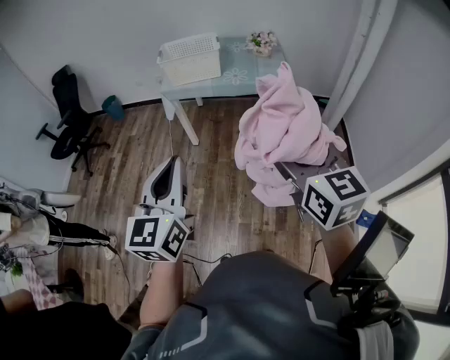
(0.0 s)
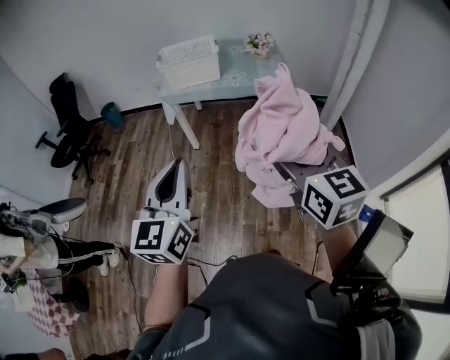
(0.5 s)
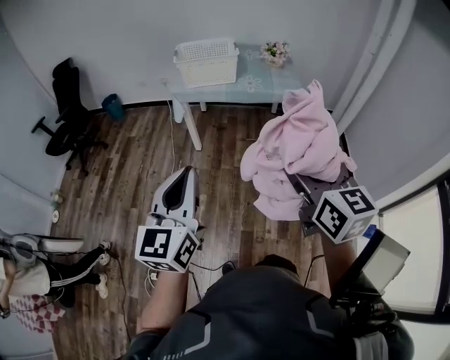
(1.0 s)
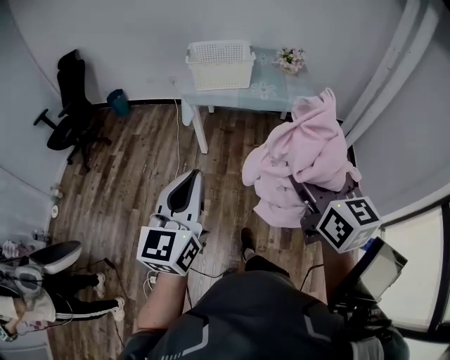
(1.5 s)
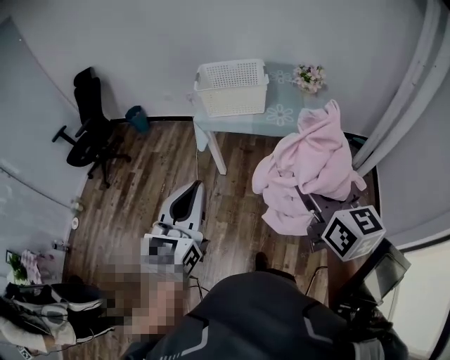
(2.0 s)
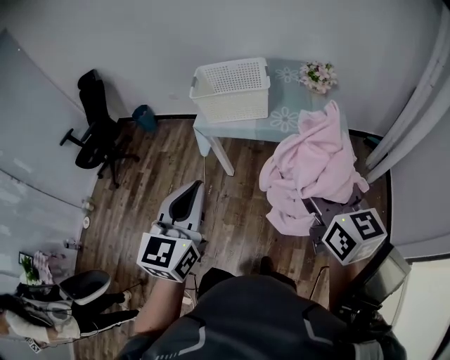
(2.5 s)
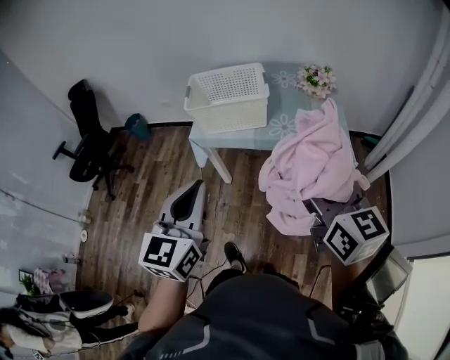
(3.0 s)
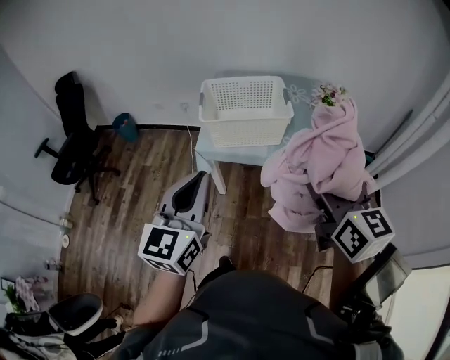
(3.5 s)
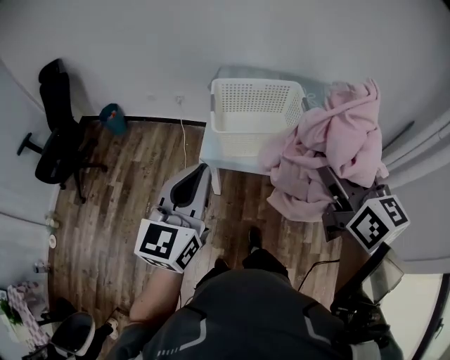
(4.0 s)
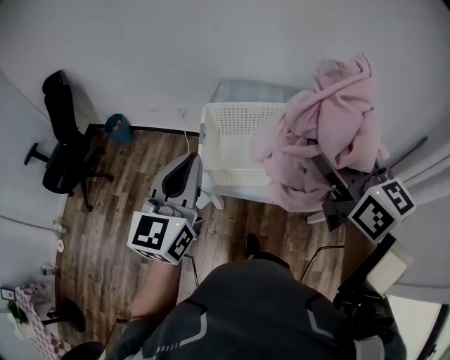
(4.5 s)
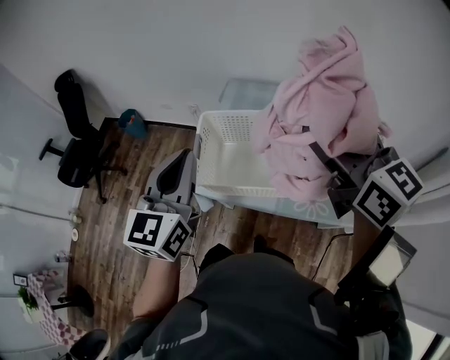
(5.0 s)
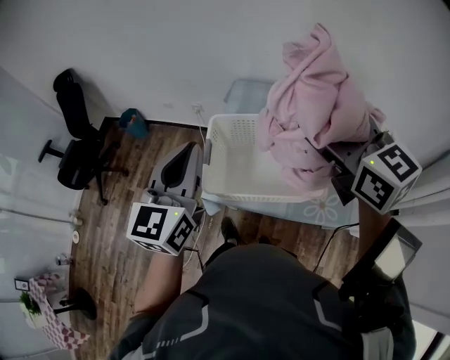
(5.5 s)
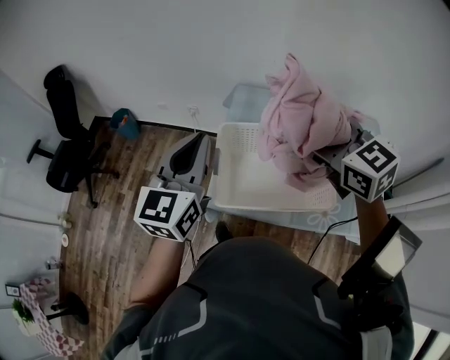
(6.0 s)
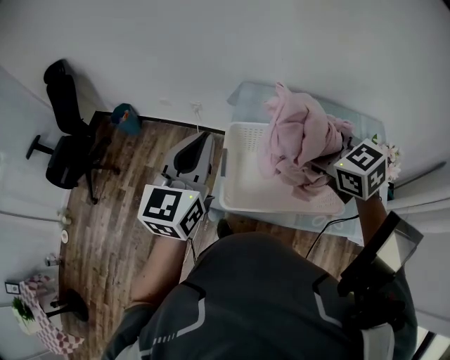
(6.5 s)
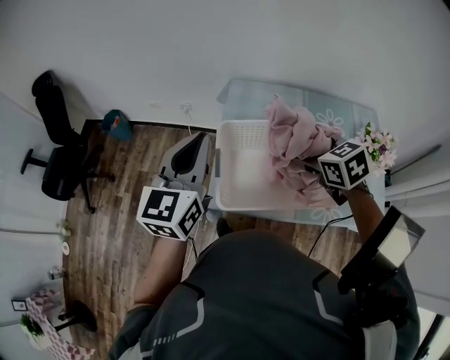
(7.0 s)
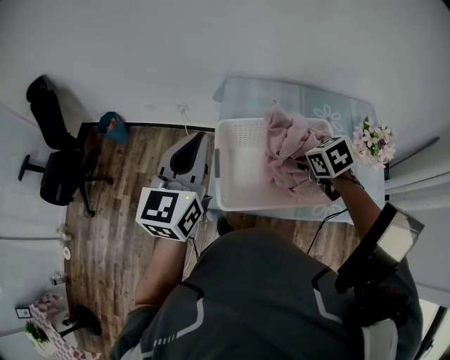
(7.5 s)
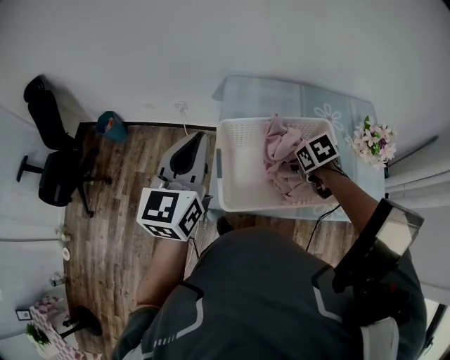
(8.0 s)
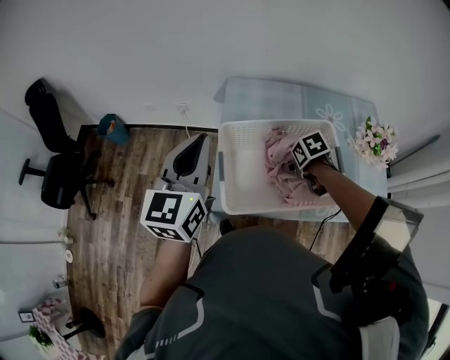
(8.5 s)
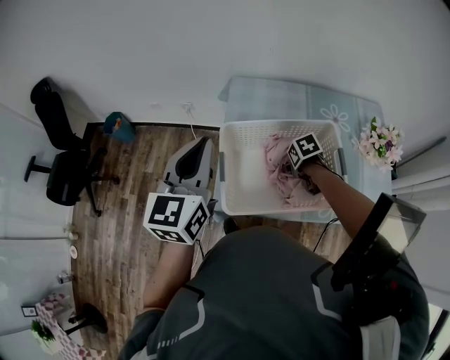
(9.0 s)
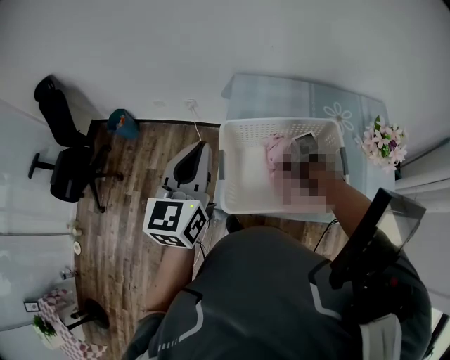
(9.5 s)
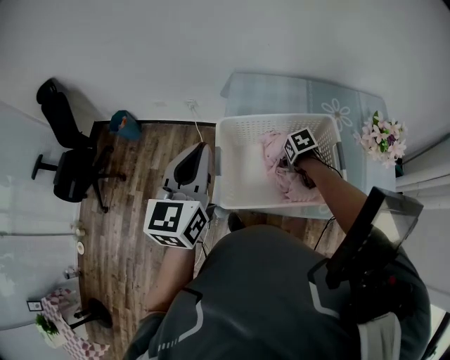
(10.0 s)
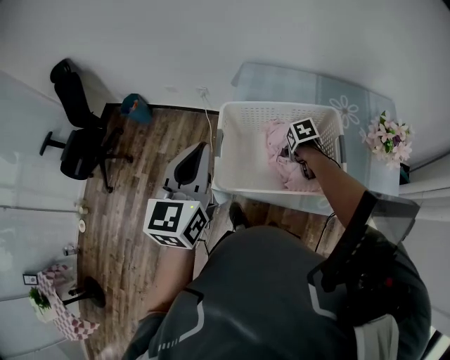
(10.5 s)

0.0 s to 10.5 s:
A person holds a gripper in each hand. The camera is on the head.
0.0 to 2.0 s: The right gripper is displaced forward by roughly 20 cm; the left gripper goes approximately 20 cm forward and to the left.
2.0 to 4.0 s: Both grippers move forward, approximately 40 cm.
4.0 to 6.5 s: Both grippers travel together forward, some 30 cm. The right gripper turns by roughly 40 degrees.
6.5 to 8.5 s: The right gripper is displaced downward by some 25 cm, and points its fingers roughly 40 degrees further downward.
8.5 to 10.5 s: The left gripper ends up some 10 cm from where it was. The right gripper goes roughly 5 cm downward.

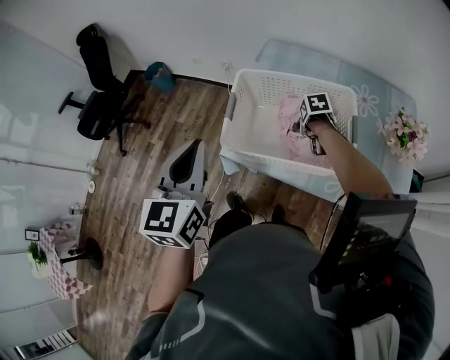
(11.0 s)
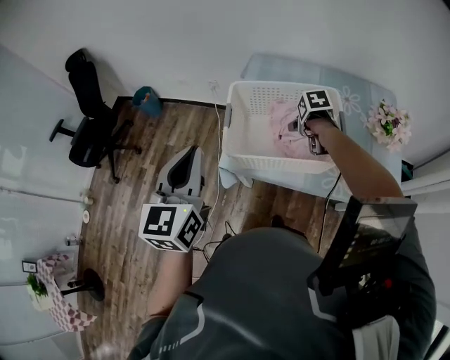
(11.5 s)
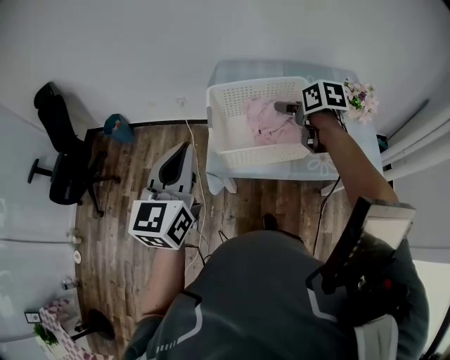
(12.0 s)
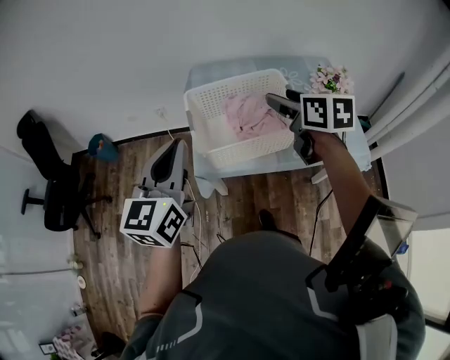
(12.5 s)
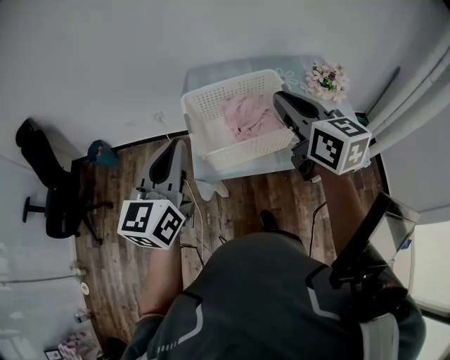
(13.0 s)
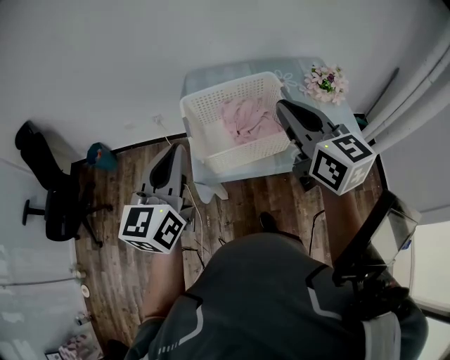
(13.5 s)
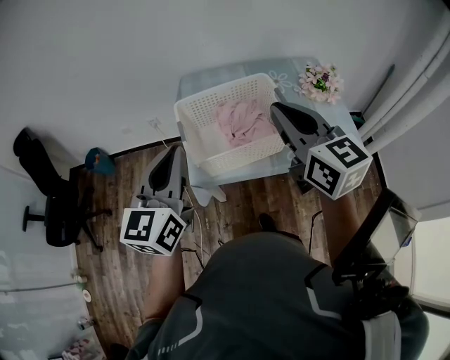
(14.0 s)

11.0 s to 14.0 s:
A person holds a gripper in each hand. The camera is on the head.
11.0 to 12.5 s: The right gripper shifts some 30 cm upward, and tips its fingers upward by roughly 50 degrees, while the left gripper turns by some 30 degrees.
12.5 to 14.0 s: The right gripper heads backward and upward, covering roughly 10 cm, changes its angle by about 30 degrees, and closes.

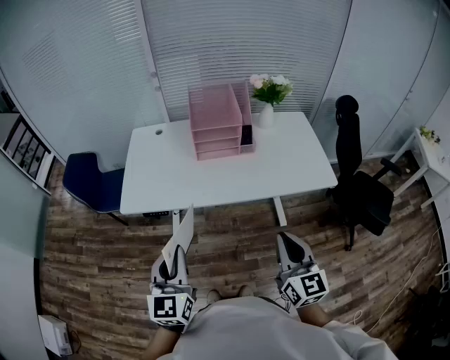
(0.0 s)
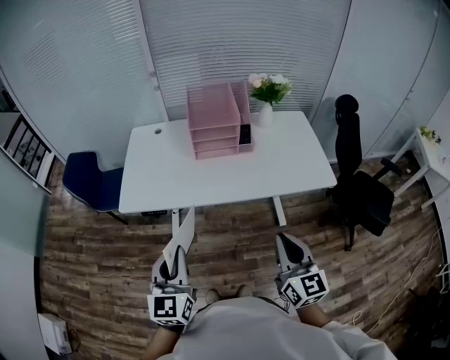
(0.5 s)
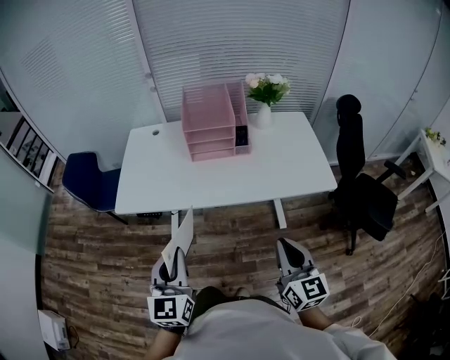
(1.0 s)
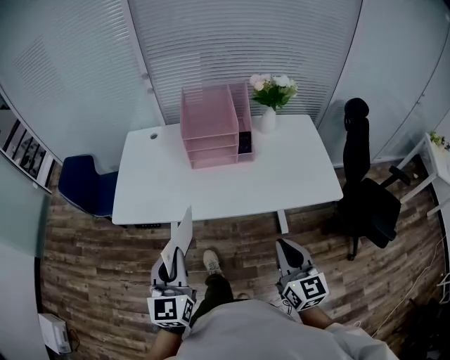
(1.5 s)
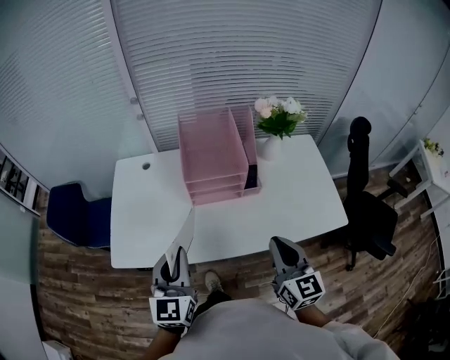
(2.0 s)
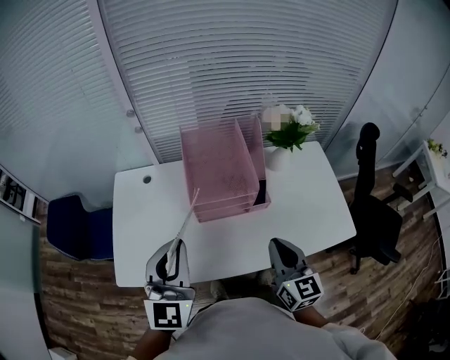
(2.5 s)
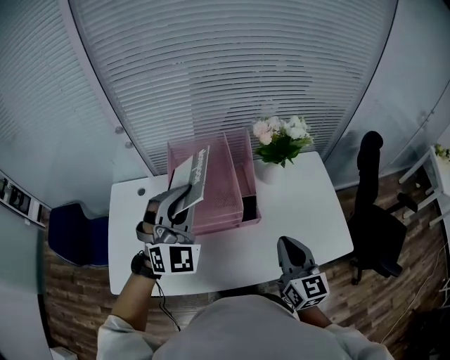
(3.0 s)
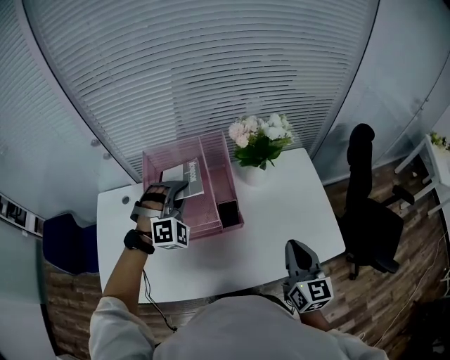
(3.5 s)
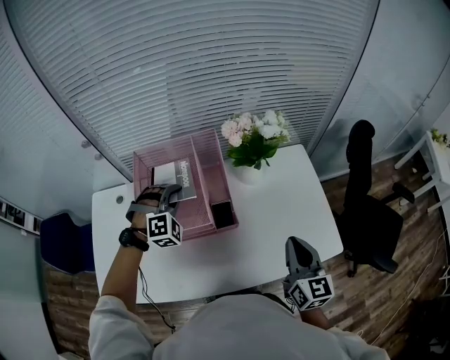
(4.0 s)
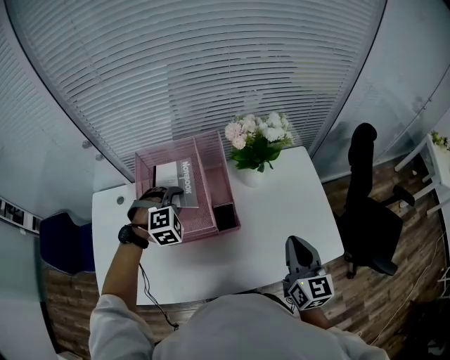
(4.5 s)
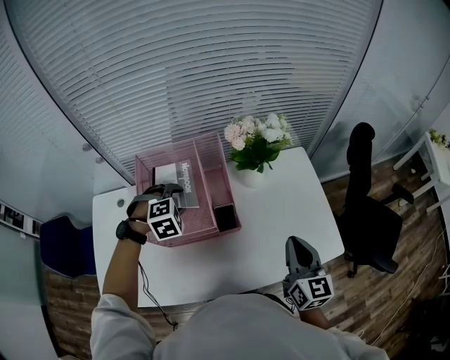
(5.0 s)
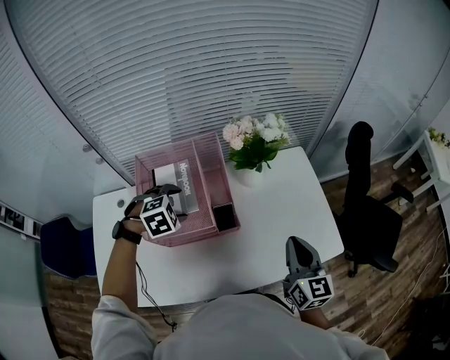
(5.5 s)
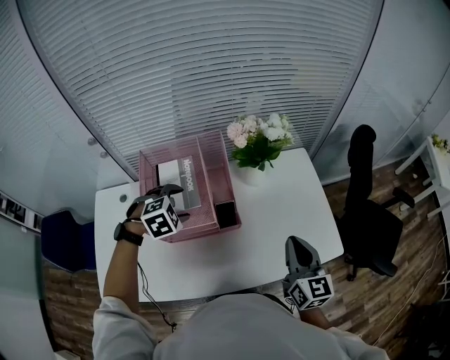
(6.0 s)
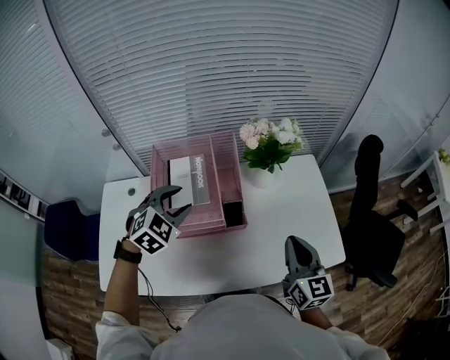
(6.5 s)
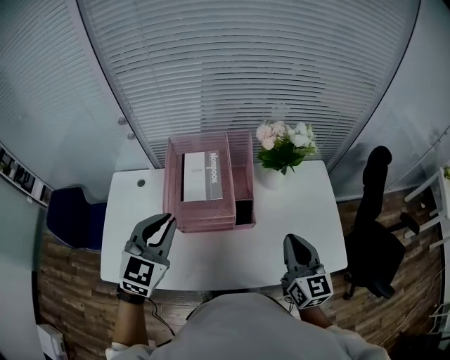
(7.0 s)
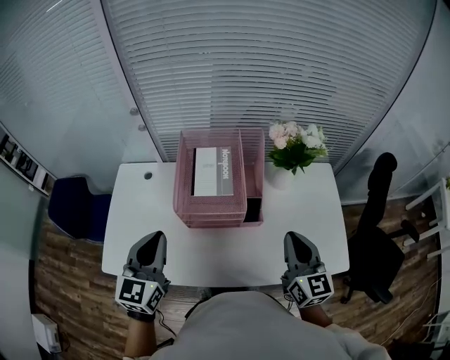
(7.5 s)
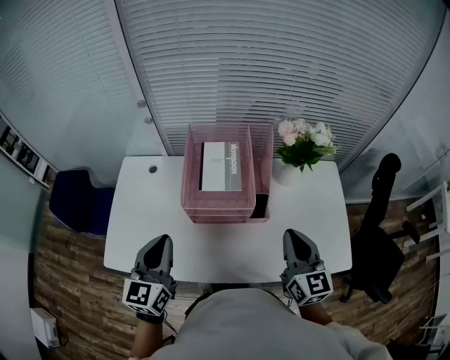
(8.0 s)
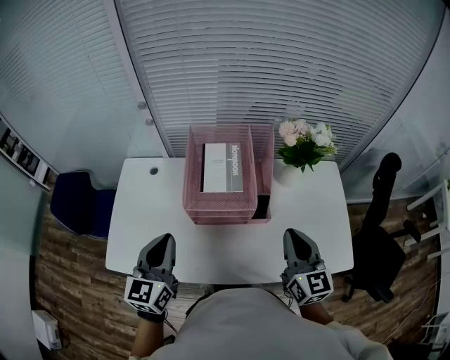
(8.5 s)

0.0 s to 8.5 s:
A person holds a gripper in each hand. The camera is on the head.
0.0 to 2.0 s: The two grippers go about 25 cm forward.
2.0 to 4.0 s: The left gripper goes roughly 40 cm forward, and rolls clockwise, seen from behind, by roughly 80 degrees, while the right gripper is displaced to the right and forward by roughly 25 cm.
4.0 to 6.5 s: The left gripper heads backward and upward, covering some 10 cm, swivels some 30 degrees, and opens its fingers.
6.5 to 8.5 s: The right gripper travels to the left by about 10 cm; the left gripper moves backward and to the left, some 20 cm, angles its fingers upward, by about 30 degrees, and closes up.

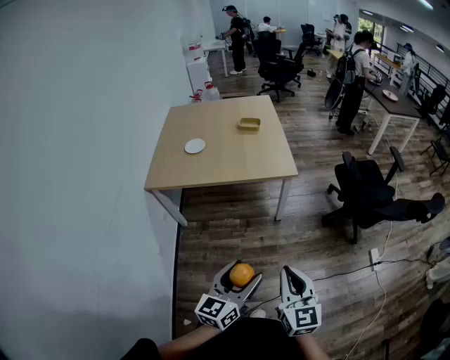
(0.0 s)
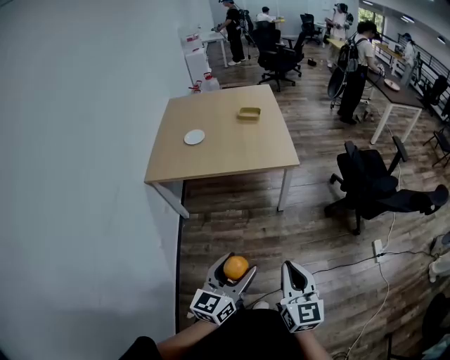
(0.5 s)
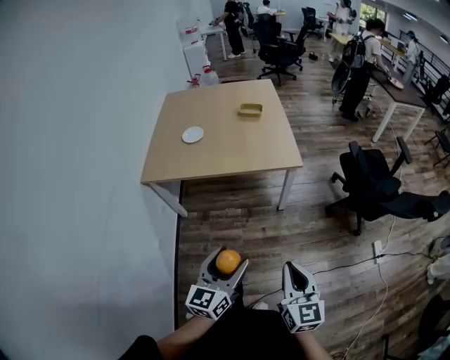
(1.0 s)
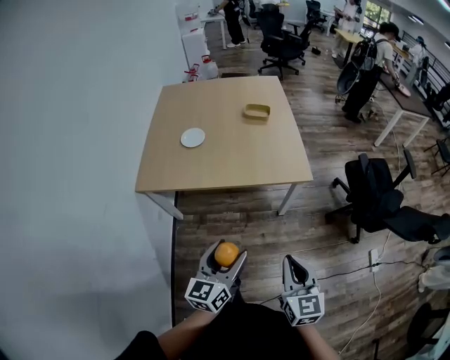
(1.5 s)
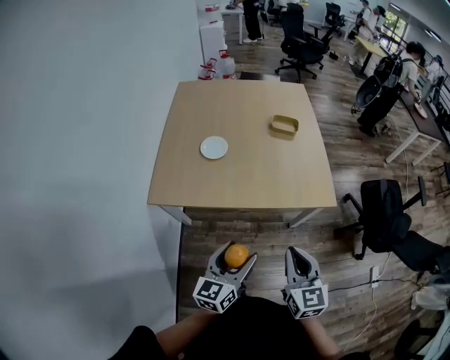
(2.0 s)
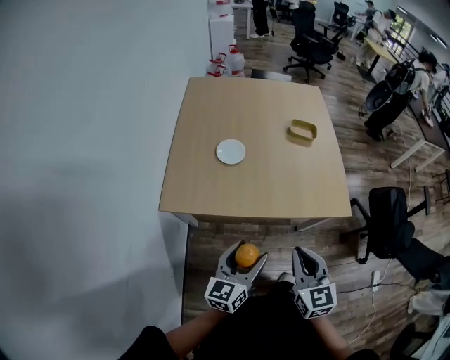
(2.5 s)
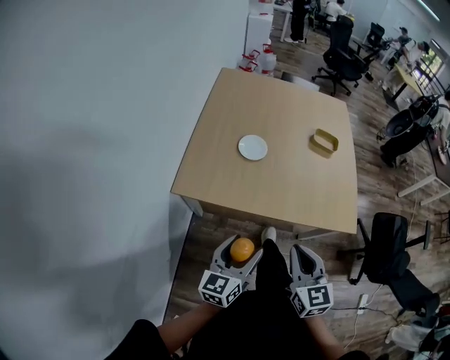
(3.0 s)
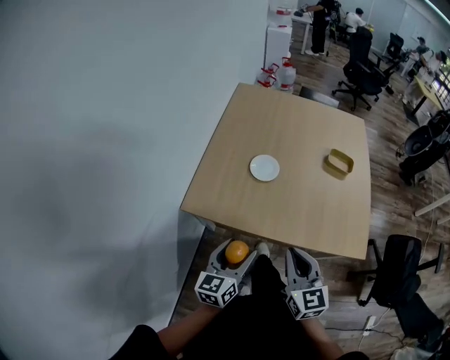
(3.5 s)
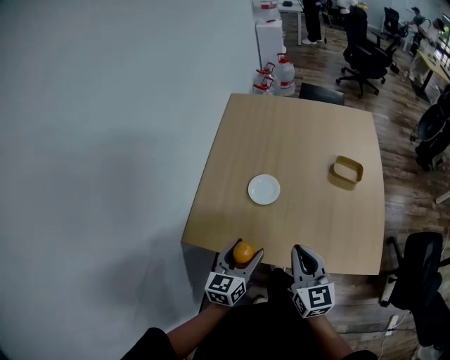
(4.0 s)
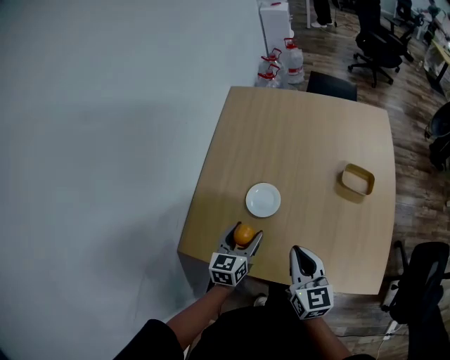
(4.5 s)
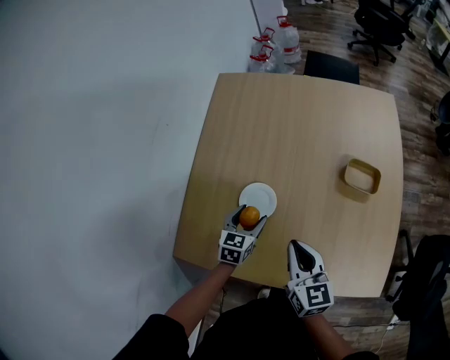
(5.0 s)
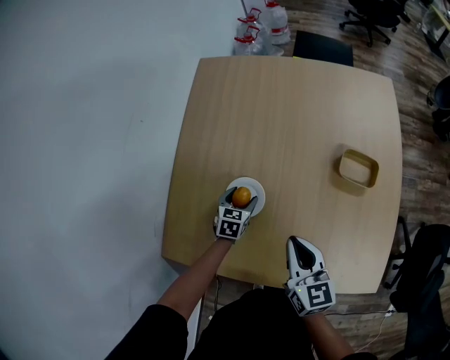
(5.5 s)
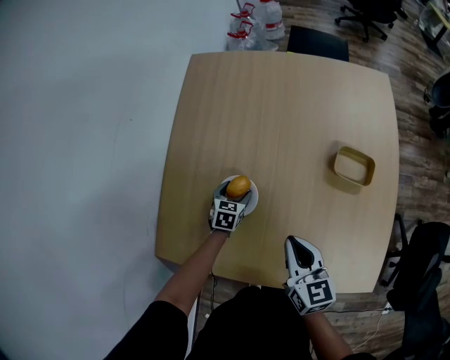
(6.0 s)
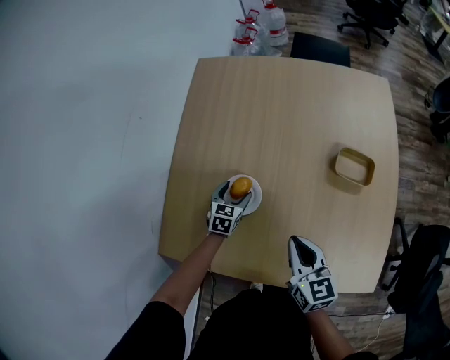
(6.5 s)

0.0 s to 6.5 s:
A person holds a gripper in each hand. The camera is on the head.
0.0 to 2.0 s: Both grippers travel together forward and to the left, approximately 40 cm.
2.0 to 4.5 s: The grippers both shift forward by approximately 40 cm. The left gripper swivels some 30 degrees; the right gripper swivels roughly 20 degrees.
4.5 to 6.5 s: The right gripper moves downward, forward and to the right, roughly 10 cm; the left gripper goes some 25 cm downward and forward, and turns by about 20 degrees.
